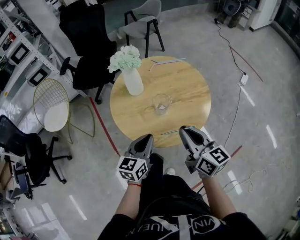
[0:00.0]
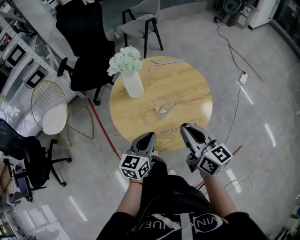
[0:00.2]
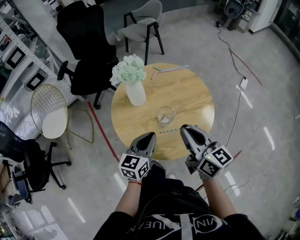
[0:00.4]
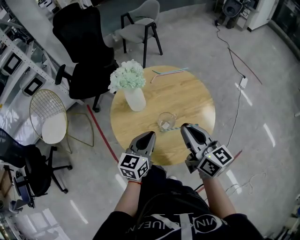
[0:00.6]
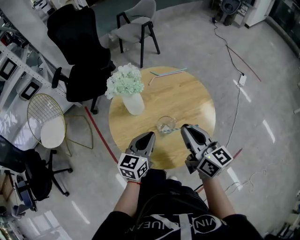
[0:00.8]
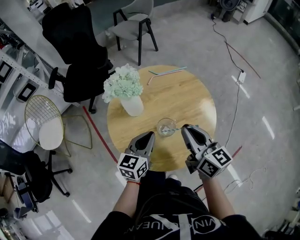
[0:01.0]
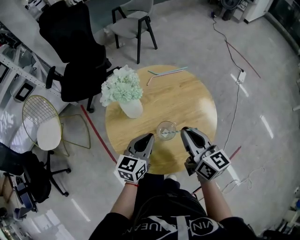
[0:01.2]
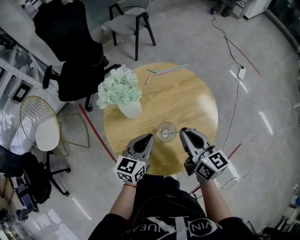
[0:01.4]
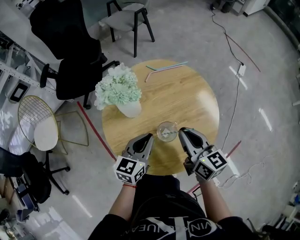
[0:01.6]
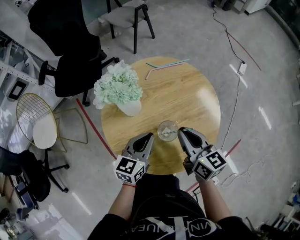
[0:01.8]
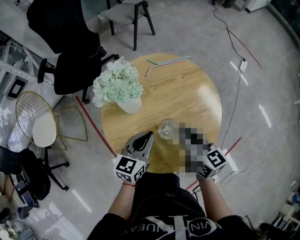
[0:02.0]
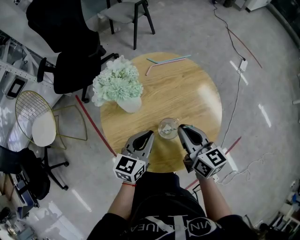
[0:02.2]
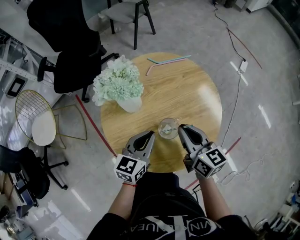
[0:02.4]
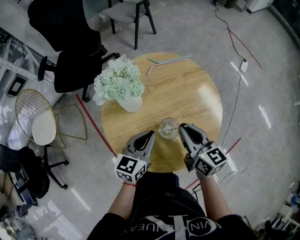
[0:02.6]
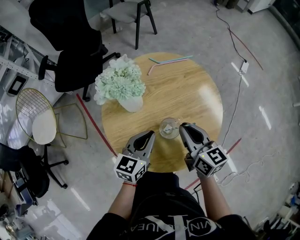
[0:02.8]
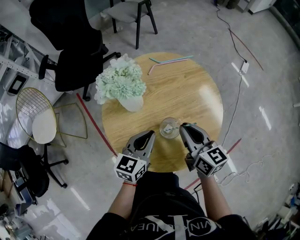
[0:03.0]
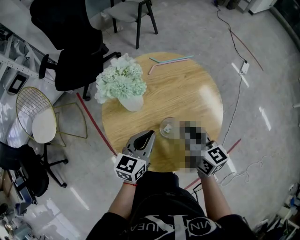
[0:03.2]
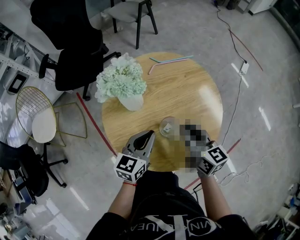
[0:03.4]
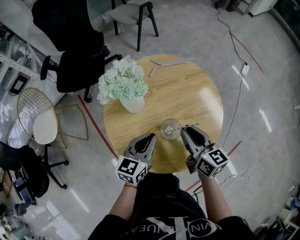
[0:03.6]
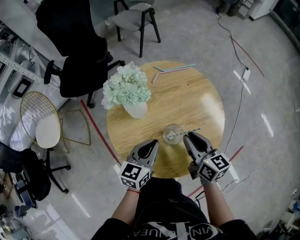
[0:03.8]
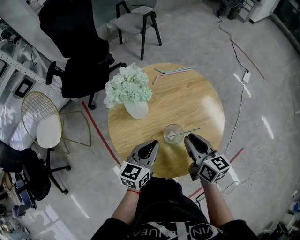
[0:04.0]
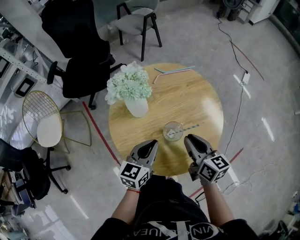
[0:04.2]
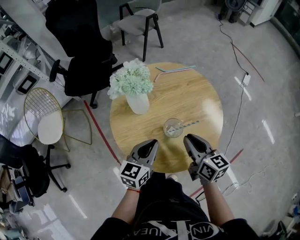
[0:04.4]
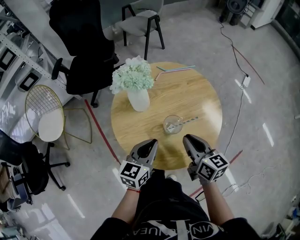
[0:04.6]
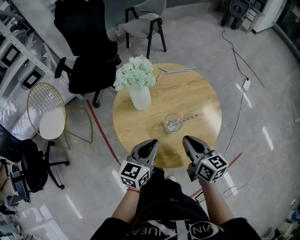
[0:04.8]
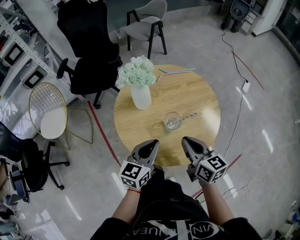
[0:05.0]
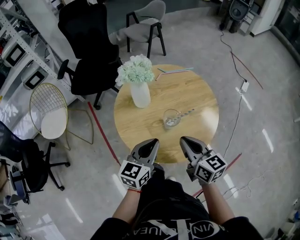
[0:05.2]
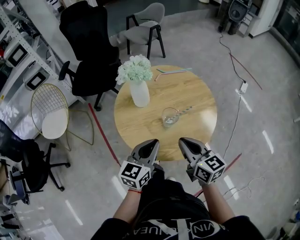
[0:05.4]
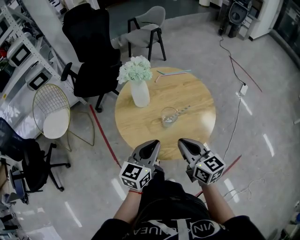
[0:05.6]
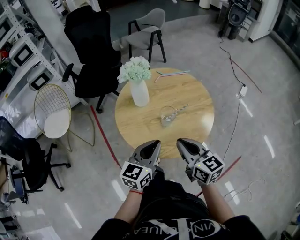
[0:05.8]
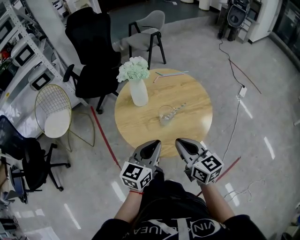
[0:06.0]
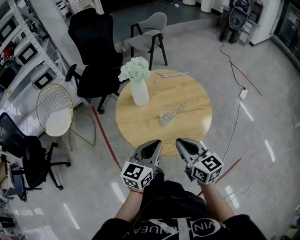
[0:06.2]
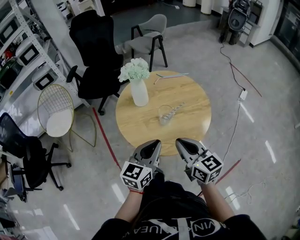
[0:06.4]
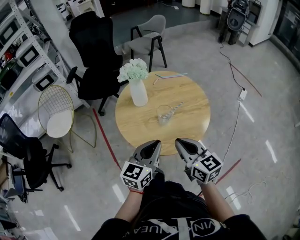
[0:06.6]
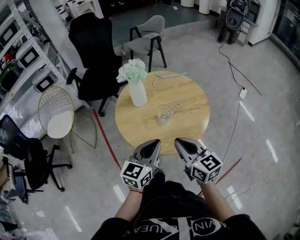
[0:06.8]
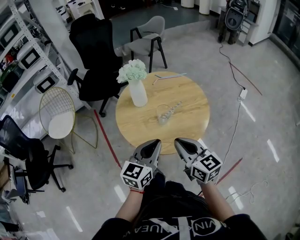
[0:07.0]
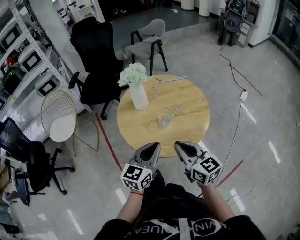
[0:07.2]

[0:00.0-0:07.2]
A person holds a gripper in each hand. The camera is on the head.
0.0 to 1.4 s: Both grippers move forward, some 15 cm.
1.4 to 4.4 s: The grippers stay close to where they were, moving slightly.
4.4 to 5.8 s: Both grippers travel together backward and upward, about 15 cm.
5.8 to 7.2 s: The right gripper shifts by about 5 cm.

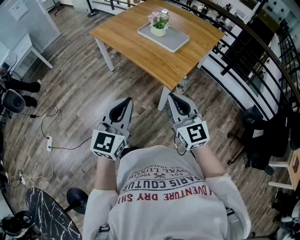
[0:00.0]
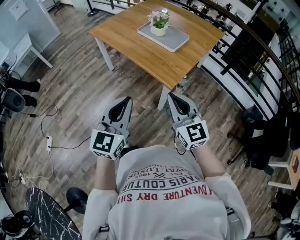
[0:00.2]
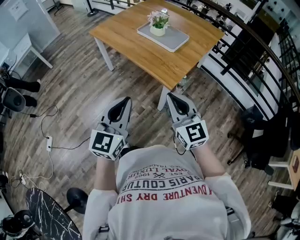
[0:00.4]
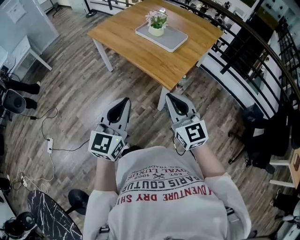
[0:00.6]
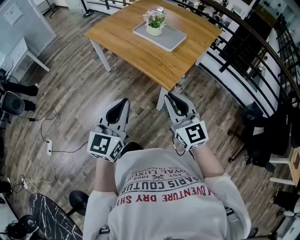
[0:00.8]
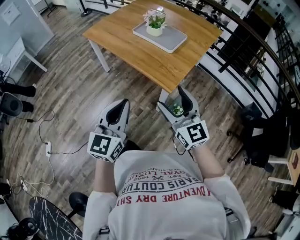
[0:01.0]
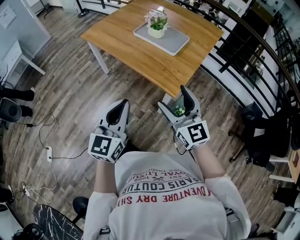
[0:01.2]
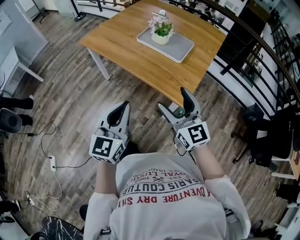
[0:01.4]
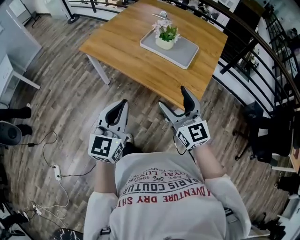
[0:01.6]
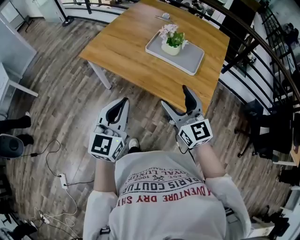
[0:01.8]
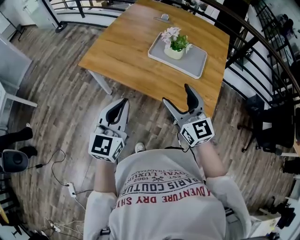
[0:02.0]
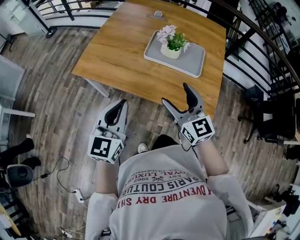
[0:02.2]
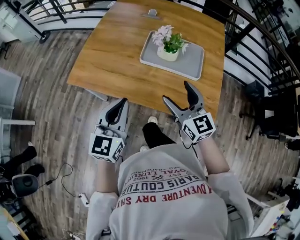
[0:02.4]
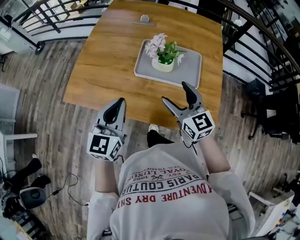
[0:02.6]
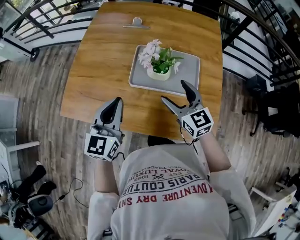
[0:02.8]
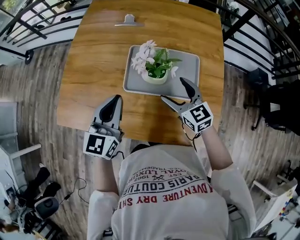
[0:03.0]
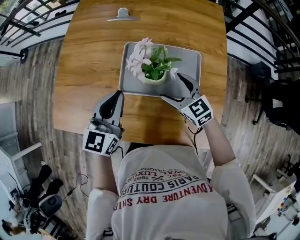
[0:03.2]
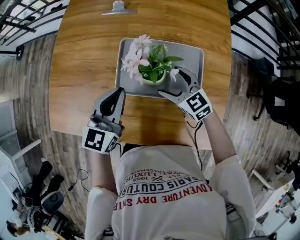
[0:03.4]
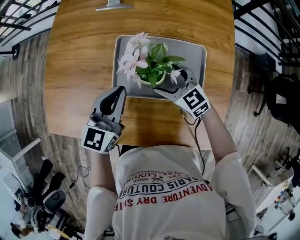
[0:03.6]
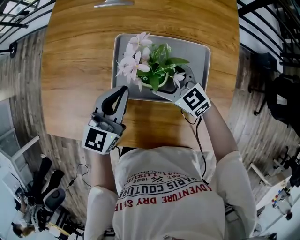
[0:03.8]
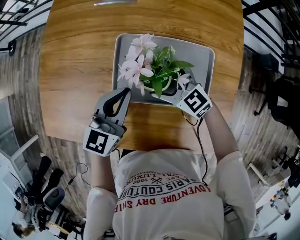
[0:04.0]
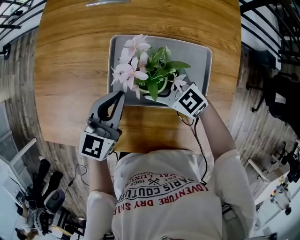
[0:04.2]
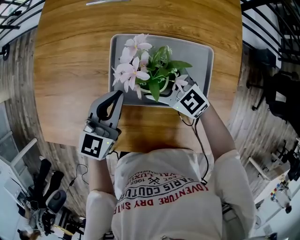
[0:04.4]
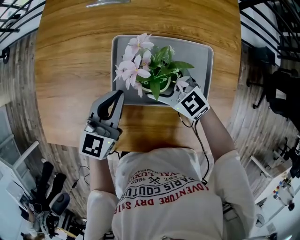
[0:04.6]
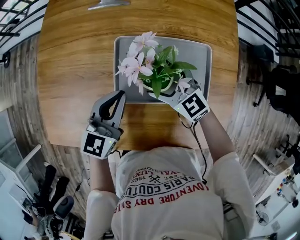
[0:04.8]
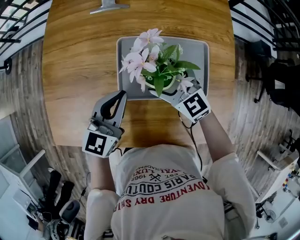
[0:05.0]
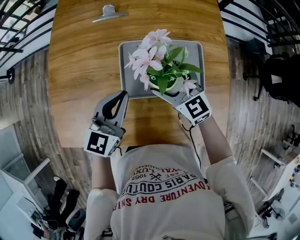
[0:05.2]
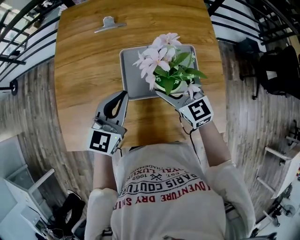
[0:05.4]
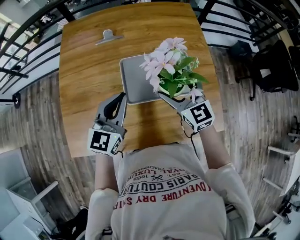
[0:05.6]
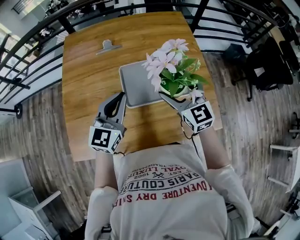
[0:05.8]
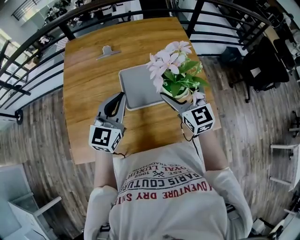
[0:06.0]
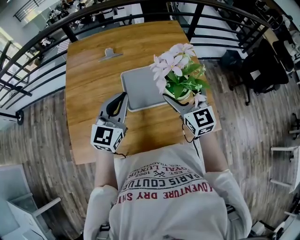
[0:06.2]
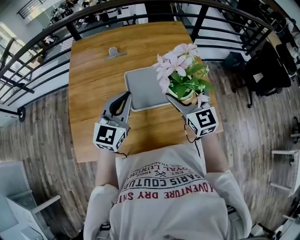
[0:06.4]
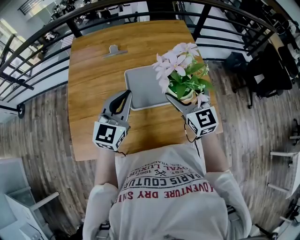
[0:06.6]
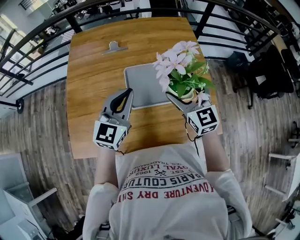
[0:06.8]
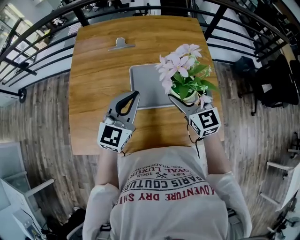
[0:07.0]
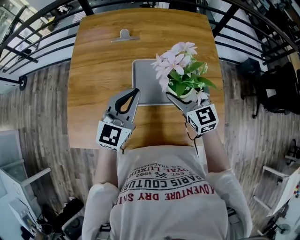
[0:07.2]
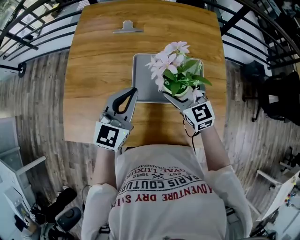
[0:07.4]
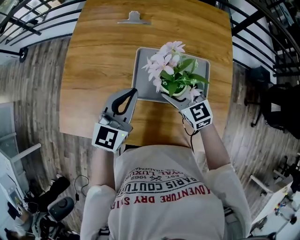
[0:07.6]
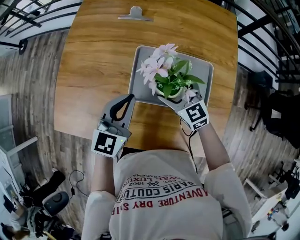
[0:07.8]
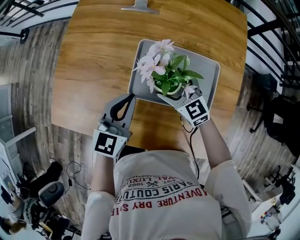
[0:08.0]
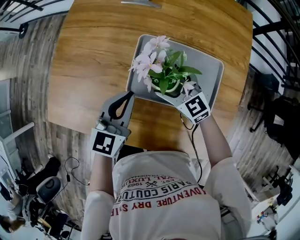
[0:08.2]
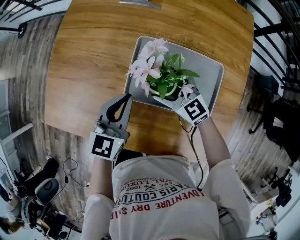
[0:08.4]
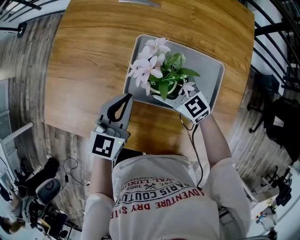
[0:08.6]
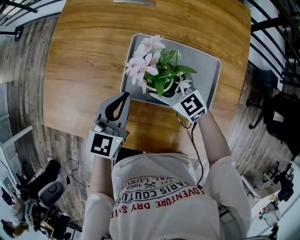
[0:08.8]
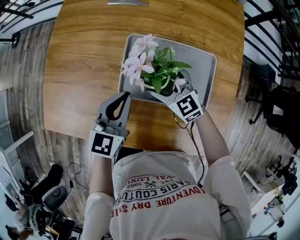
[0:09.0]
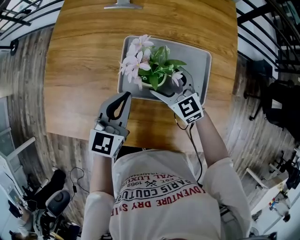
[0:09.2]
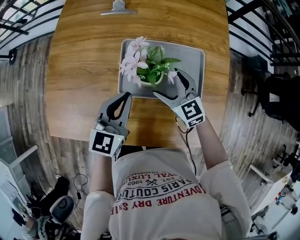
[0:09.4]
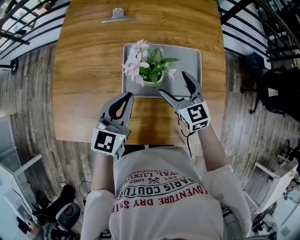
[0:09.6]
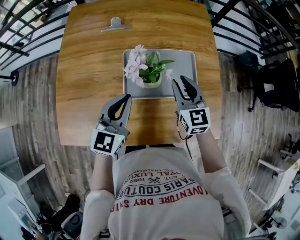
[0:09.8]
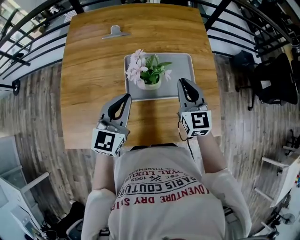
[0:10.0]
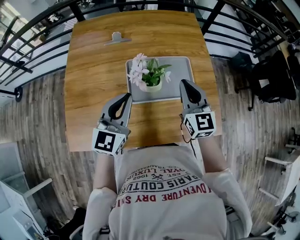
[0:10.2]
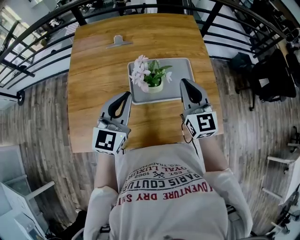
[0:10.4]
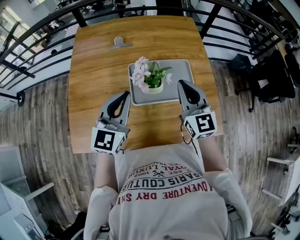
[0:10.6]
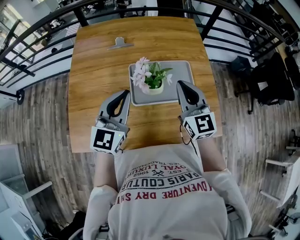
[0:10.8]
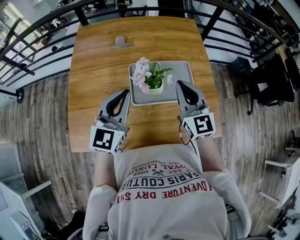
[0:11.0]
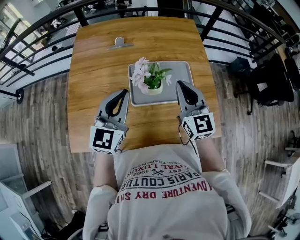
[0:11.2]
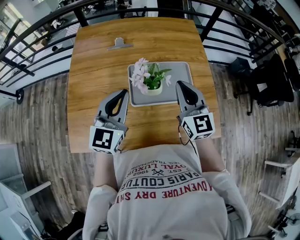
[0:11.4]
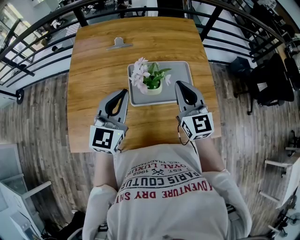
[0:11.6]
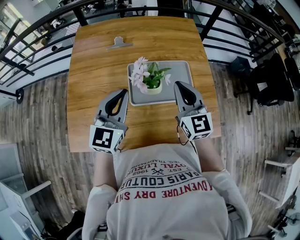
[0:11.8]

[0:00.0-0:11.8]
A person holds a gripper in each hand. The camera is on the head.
0.0 to 1.4 s: The grippers both shift forward and to the left by approximately 15 cm. The right gripper opens.
1.4 to 3.0 s: The pair of grippers is taken forward, about 50 cm. The right gripper rotates about 30 degrees, while the left gripper changes its angle by about 30 degrees.
3.0 to 4.4 s: The left gripper moves downward and forward, some 15 cm; the right gripper heads downward, forward and to the left, covering about 15 cm, and swivels roughly 20 degrees.
4.4 to 6.0 s: The grippers both shift upward by approximately 20 cm. The right gripper changes its angle by about 50 degrees. The left gripper turns by roughly 20 degrees.
6.0 to 7.4 s: The right gripper is displaced downward and forward by approximately 10 cm, and swivels some 20 degrees.
7.4 to 8.8 s: The right gripper travels downward and to the left by about 15 cm, and rotates some 30 degrees. Meanwhile the left gripper goes roughly 10 cm downward, and changes its angle by approximately 20 degrees.
8.8 to 10.4 s: The grippers both shift upward by some 20 cm. The left gripper rotates about 30 degrees. Meanwhile the right gripper turns by some 50 degrees, and closes its fingers.
10.4 to 11.8 s: The grippers stay close to where they were, moving slightly.

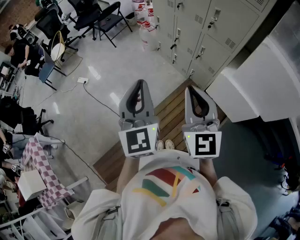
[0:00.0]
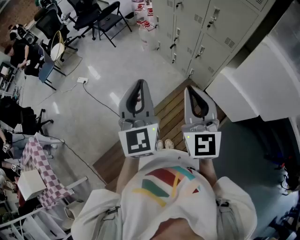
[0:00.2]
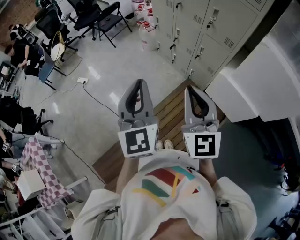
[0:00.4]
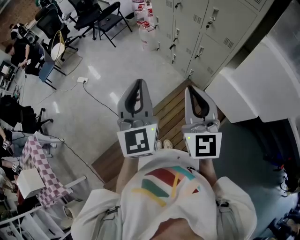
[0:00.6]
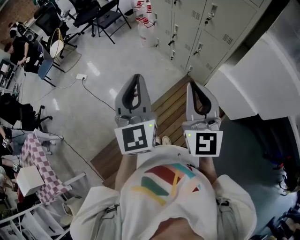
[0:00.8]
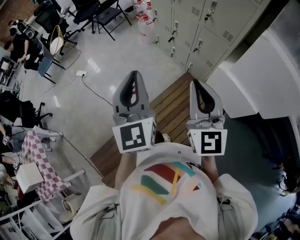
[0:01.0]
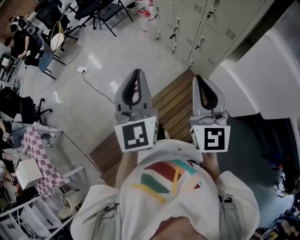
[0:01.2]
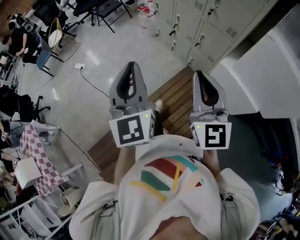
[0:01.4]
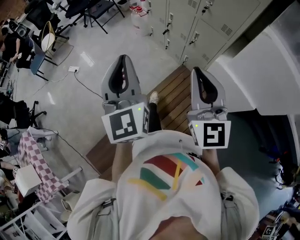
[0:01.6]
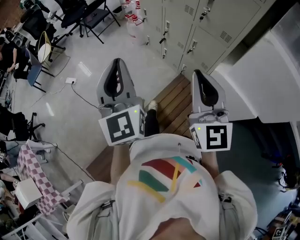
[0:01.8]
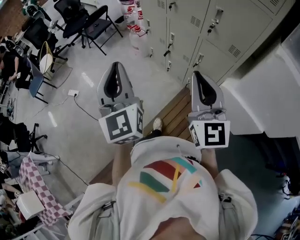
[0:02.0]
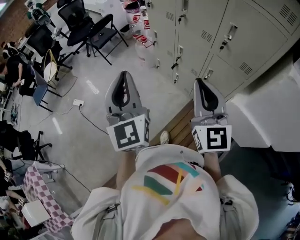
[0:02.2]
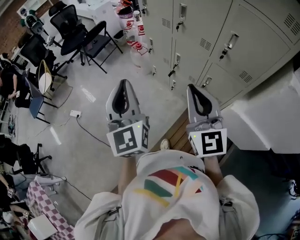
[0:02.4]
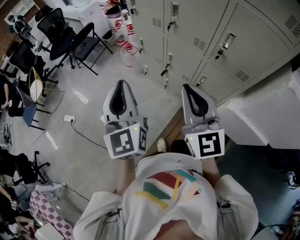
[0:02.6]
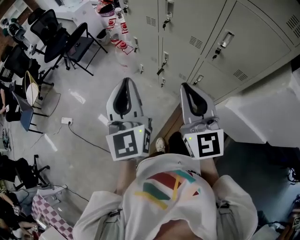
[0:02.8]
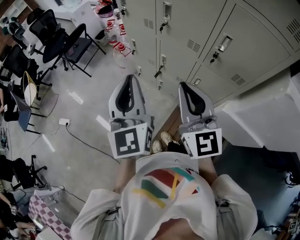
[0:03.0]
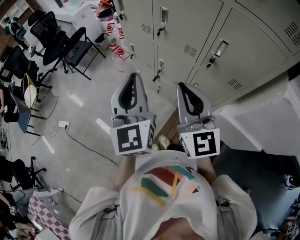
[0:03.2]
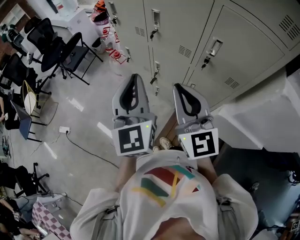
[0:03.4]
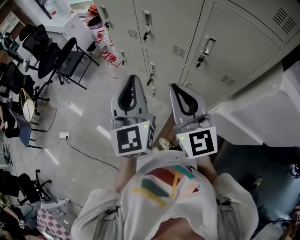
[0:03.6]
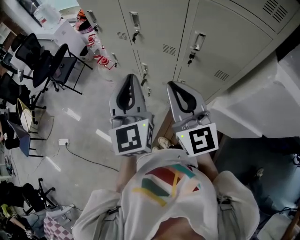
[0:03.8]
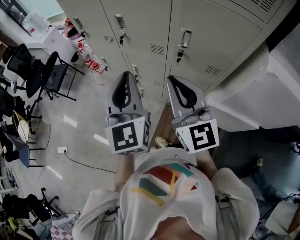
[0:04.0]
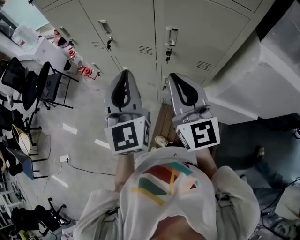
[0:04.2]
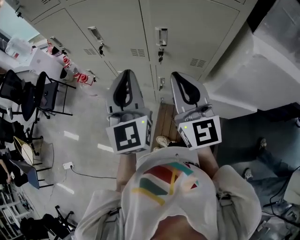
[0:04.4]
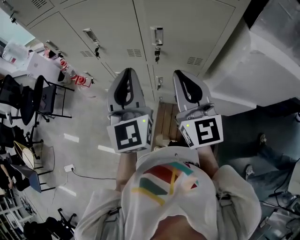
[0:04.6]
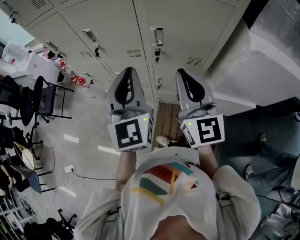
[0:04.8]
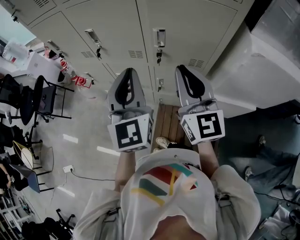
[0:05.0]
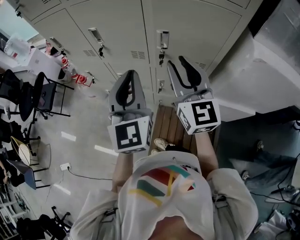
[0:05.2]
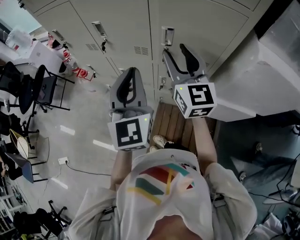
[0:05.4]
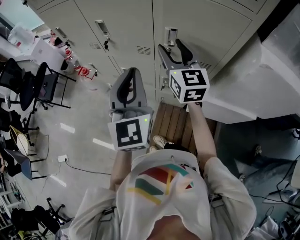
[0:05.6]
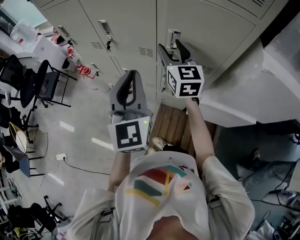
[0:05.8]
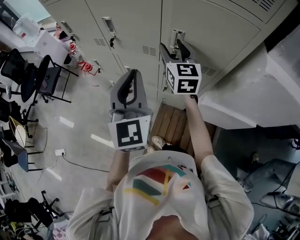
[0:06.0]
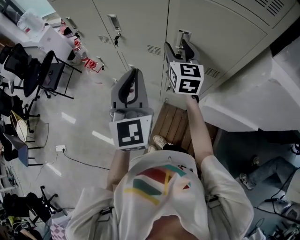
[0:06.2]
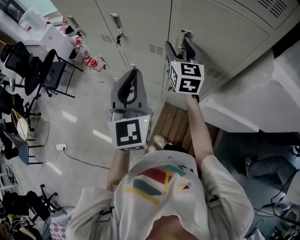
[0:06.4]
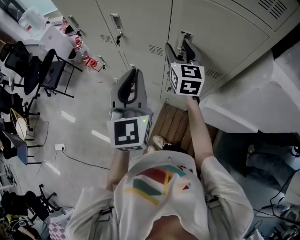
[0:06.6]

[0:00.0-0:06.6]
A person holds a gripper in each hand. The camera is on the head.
0.0 to 1.6 s: The right gripper heads to the right, covering approximately 5 cm; the left gripper moves roughly 5 cm.
1.6 to 3.2 s: The two grippers go about 40 cm forward.
3.2 to 5.0 s: The right gripper changes place by some 15 cm, and changes its angle by about 20 degrees. The left gripper shifts by approximately 20 cm, and changes its angle by some 20 degrees.
5.0 to 6.6 s: The right gripper travels forward and downward by approximately 20 cm, and opens its fingers.
